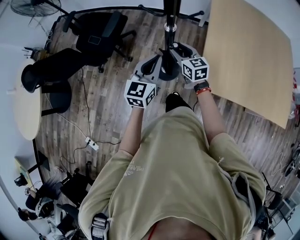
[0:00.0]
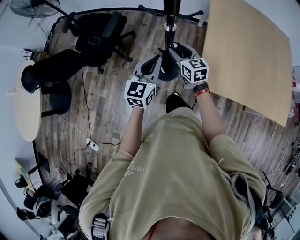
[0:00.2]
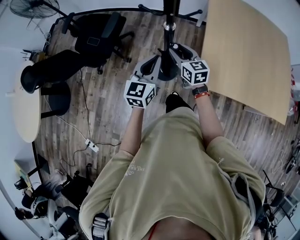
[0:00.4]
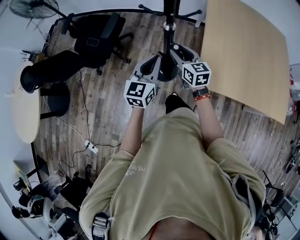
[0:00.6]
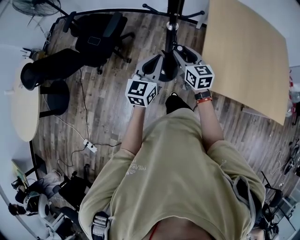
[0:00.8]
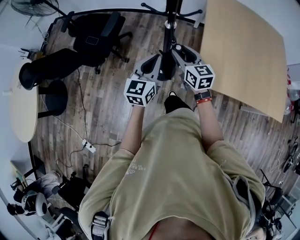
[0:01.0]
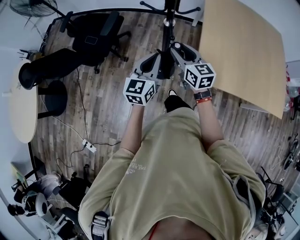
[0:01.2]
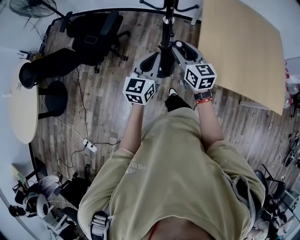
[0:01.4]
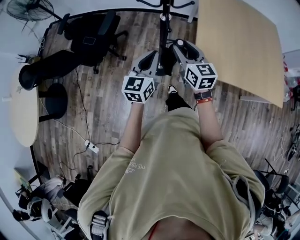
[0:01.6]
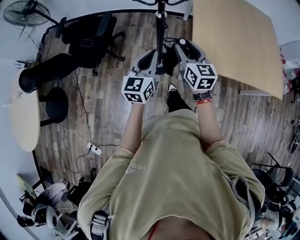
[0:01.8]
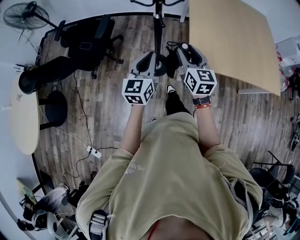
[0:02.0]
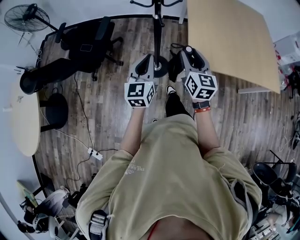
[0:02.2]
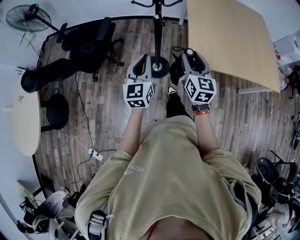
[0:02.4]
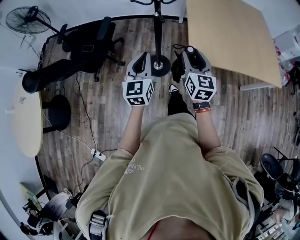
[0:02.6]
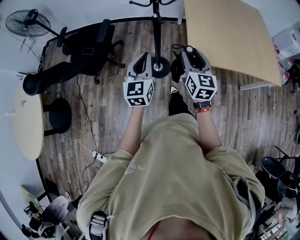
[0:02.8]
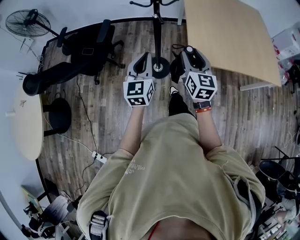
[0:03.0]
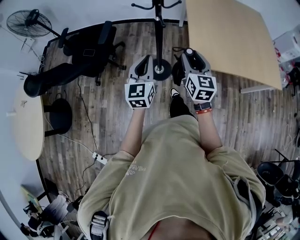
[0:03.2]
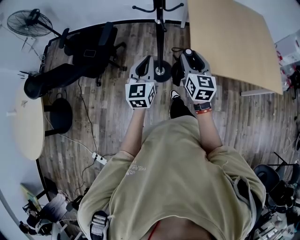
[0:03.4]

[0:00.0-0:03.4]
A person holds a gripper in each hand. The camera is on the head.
0:00.0 to 0:01.6: The right gripper travels backward and upward by about 20 cm. Meanwhile the left gripper is displaced backward by some 10 cm.
0:01.6 to 0:03.4: The right gripper moves backward and to the right, some 10 cm. The left gripper is displaced backward by roughly 5 cm.

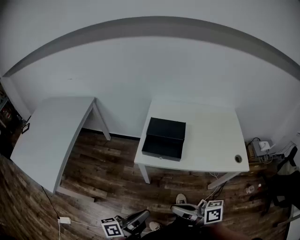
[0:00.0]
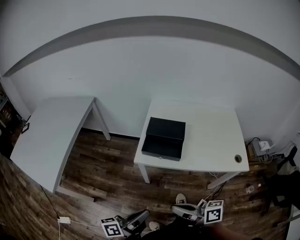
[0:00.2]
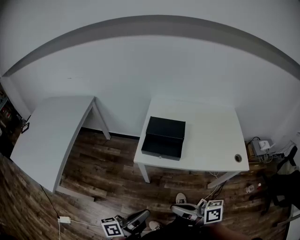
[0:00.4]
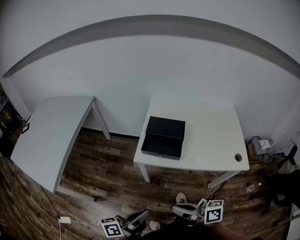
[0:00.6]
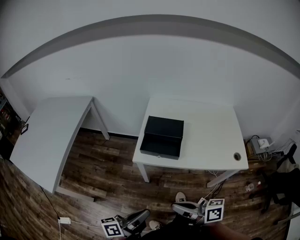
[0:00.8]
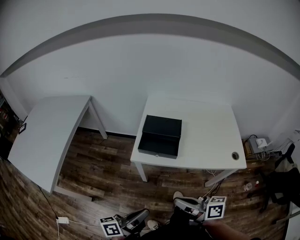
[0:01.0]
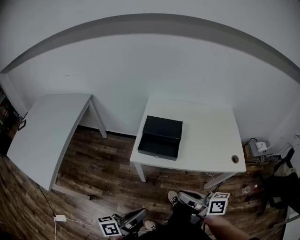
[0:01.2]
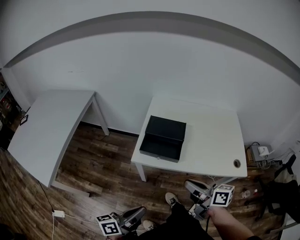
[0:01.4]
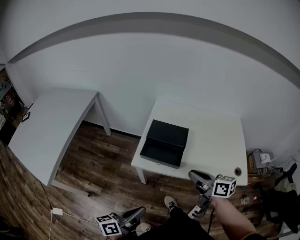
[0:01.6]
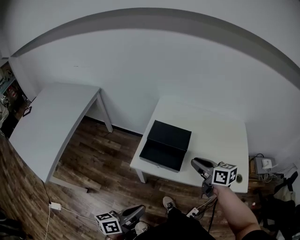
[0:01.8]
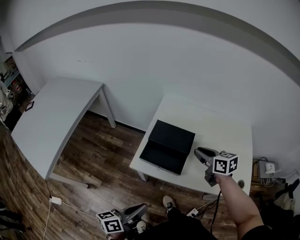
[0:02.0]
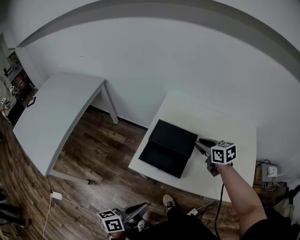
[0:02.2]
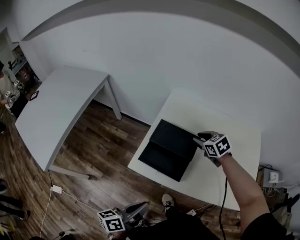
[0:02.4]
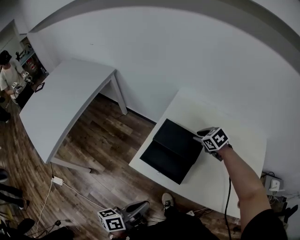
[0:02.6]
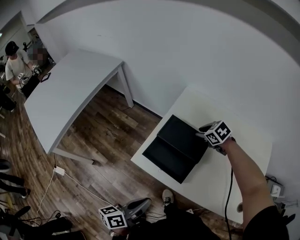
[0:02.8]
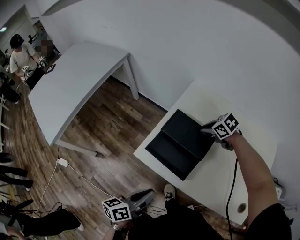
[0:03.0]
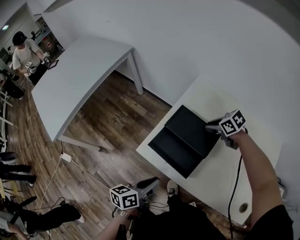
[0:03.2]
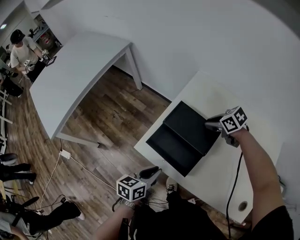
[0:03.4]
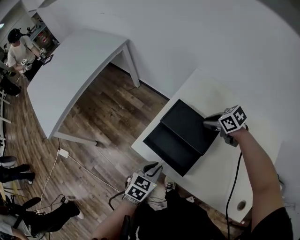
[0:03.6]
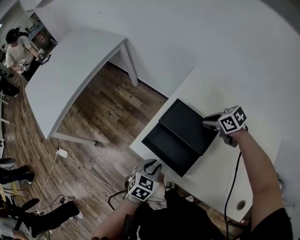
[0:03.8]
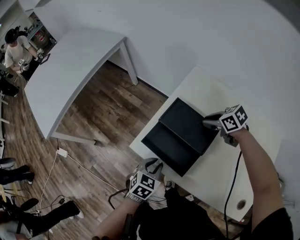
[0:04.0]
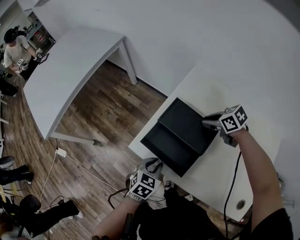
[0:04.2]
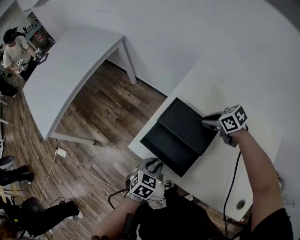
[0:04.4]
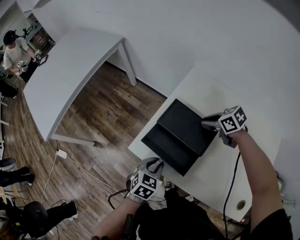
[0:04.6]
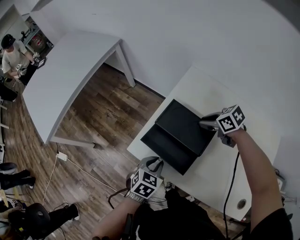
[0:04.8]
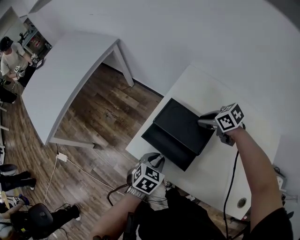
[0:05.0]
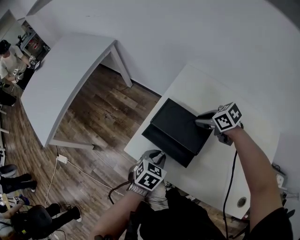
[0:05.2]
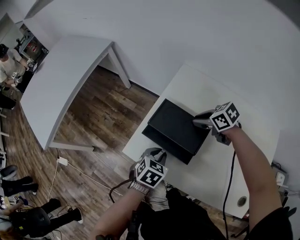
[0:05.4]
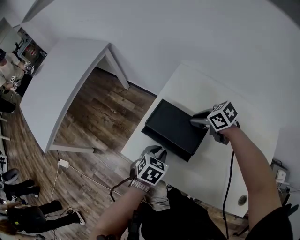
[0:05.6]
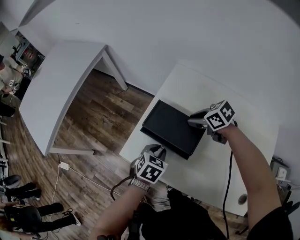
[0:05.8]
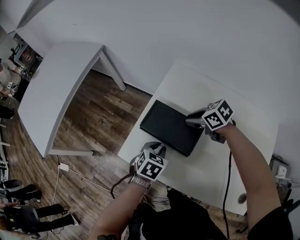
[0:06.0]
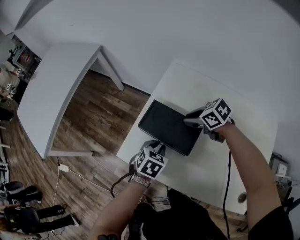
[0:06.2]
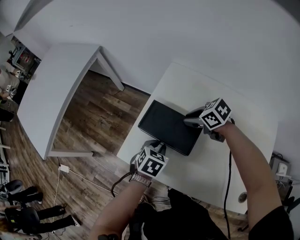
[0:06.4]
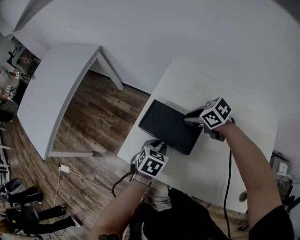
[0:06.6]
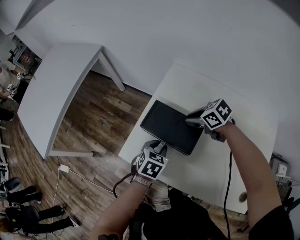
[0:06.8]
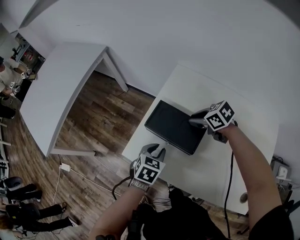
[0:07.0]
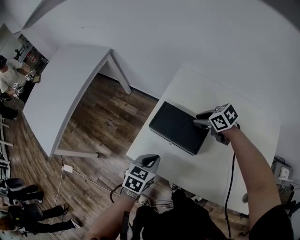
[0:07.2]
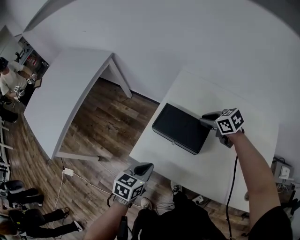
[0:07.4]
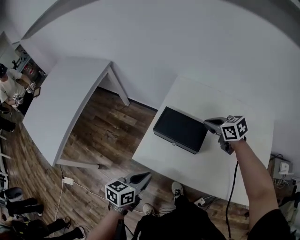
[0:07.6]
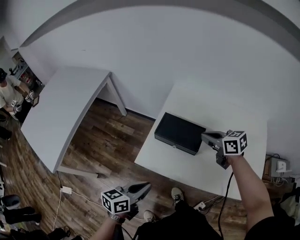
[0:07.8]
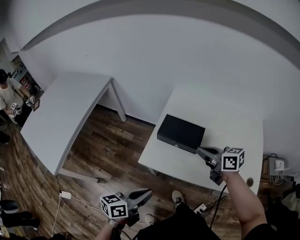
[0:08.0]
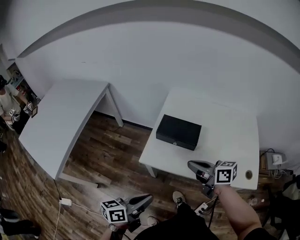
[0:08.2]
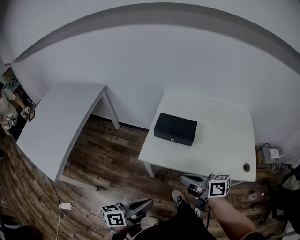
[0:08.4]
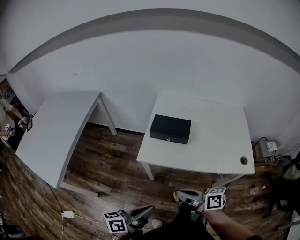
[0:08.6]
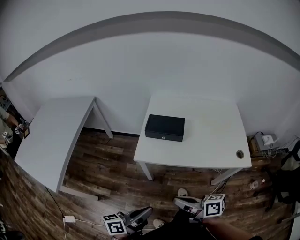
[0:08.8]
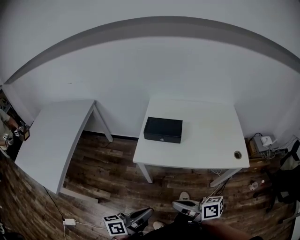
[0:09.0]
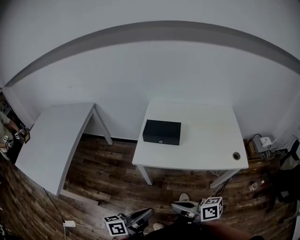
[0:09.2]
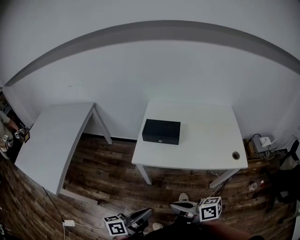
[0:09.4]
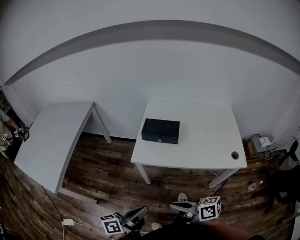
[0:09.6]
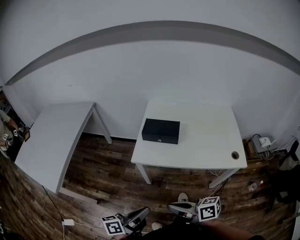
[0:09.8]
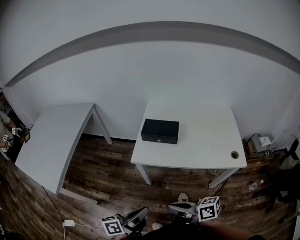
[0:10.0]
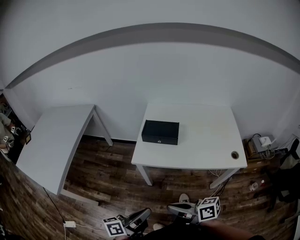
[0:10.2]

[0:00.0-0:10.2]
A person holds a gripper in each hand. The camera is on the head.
0:00.0 to 0:01.4: The right gripper moves forward and to the right, roughly 15 cm.
0:01.4 to 0:03.0: The left gripper moves about 20 cm, and turns by approximately 30 degrees. Meanwhile the right gripper moves roughly 40 cm, and tilts its fingers roughly 50 degrees downward.
0:03.0 to 0:04.4: The left gripper is displaced downward, forward and to the right by roughly 15 cm, and rotates around the line of its fingers by about 50 degrees, clockwise from behind.
0:04.4 to 0:05.8: The left gripper moves to the right and forward, some 10 cm.
0:05.8 to 0:07.2: The left gripper heads to the left, covering roughly 5 cm.
0:07.2 to 0:08.8: The right gripper shifts by approximately 50 cm, angles its fingers upward, by roughly 40 degrees, and closes its fingers; the left gripper changes place by approximately 35 cm, and points its fingers about 40 degrees further upward.
0:08.8 to 0:10.2: The grippers make only small movements.

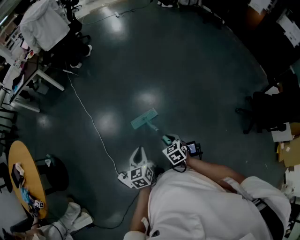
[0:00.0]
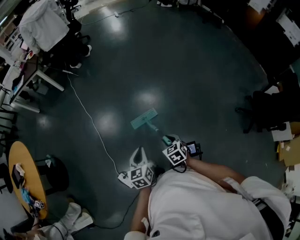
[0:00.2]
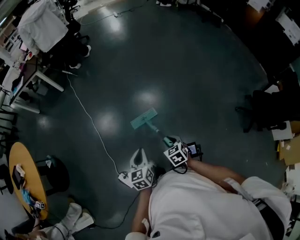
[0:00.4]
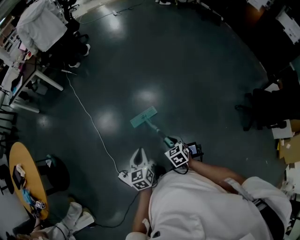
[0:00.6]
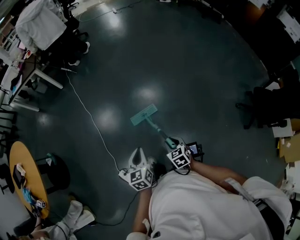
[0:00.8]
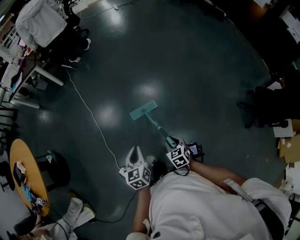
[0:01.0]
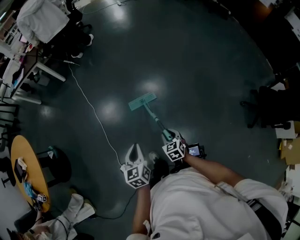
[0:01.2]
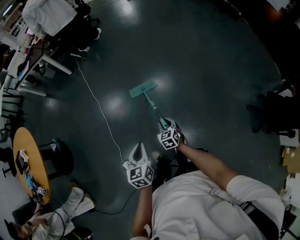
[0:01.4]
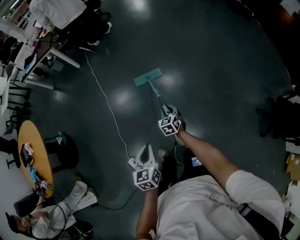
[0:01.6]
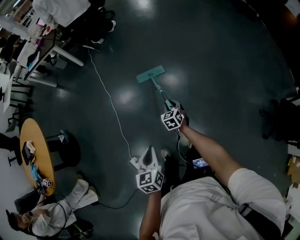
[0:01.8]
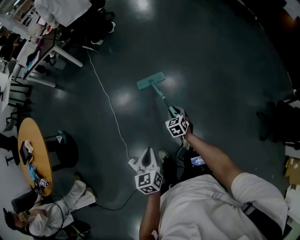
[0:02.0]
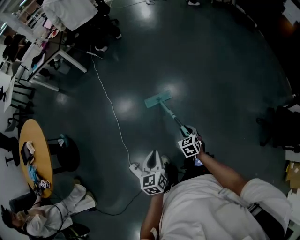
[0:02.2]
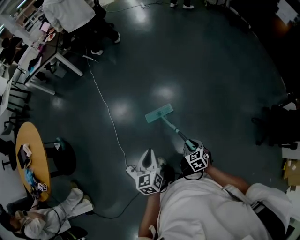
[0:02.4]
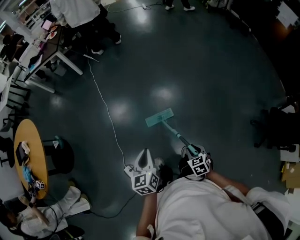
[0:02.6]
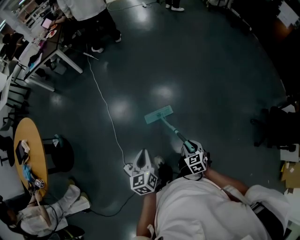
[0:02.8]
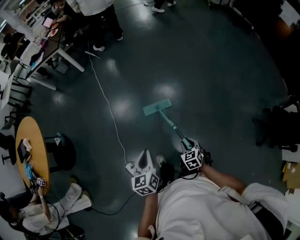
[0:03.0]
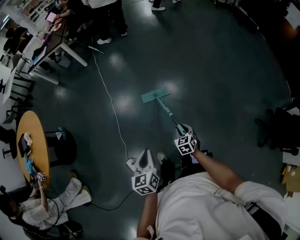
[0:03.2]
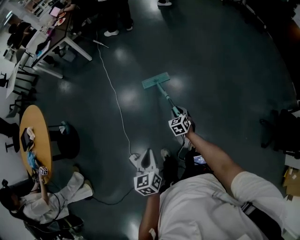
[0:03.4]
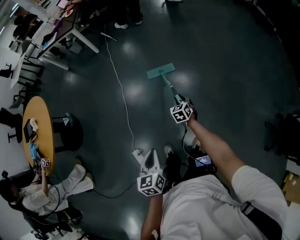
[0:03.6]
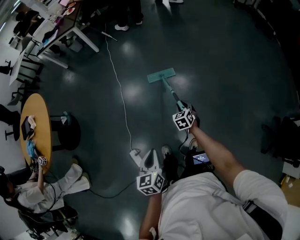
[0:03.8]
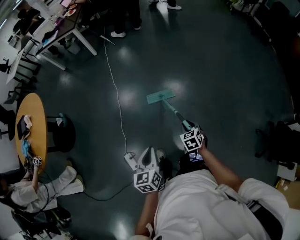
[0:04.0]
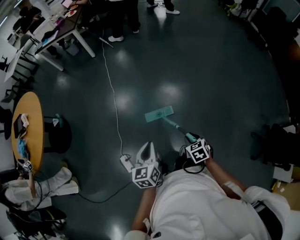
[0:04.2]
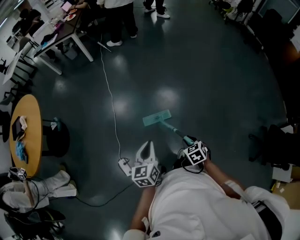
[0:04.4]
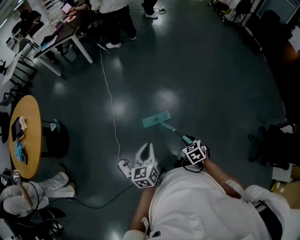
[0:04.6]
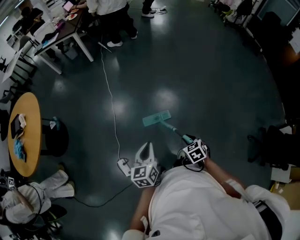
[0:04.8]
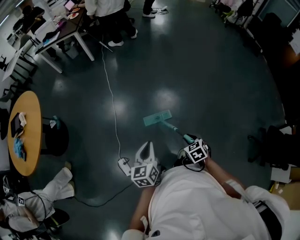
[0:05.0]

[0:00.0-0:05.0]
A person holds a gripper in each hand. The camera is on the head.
0:00.0 to 0:01.6: The right gripper shifts some 20 cm forward and downward.
0:01.6 to 0:03.4: The left gripper moves roughly 5 cm. The right gripper reaches roughly 25 cm backward, then returns.
0:03.4 to 0:05.0: The right gripper travels backward and upward by some 20 cm.

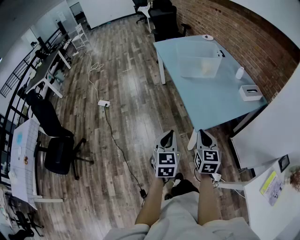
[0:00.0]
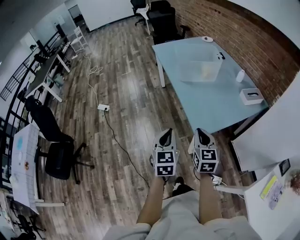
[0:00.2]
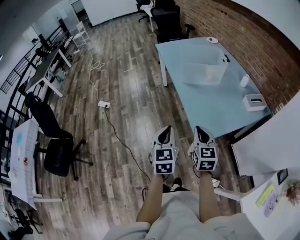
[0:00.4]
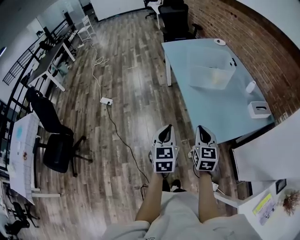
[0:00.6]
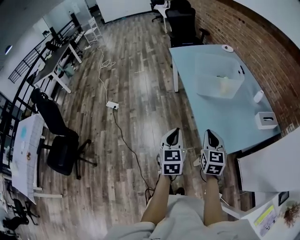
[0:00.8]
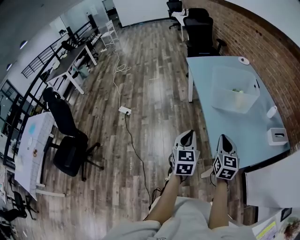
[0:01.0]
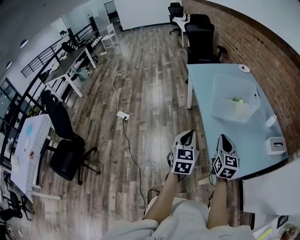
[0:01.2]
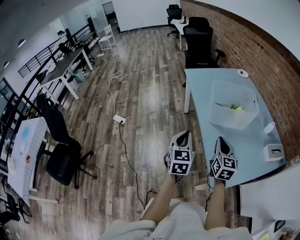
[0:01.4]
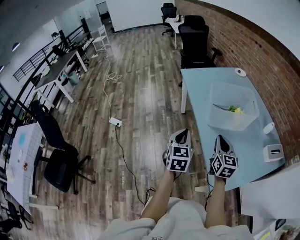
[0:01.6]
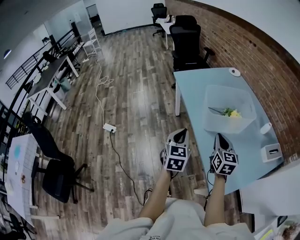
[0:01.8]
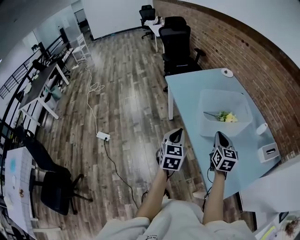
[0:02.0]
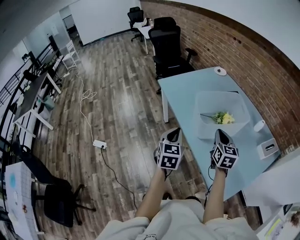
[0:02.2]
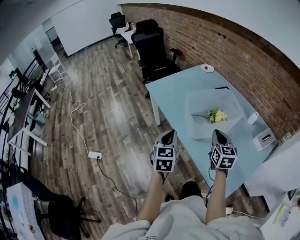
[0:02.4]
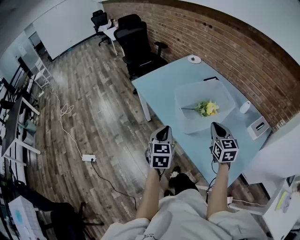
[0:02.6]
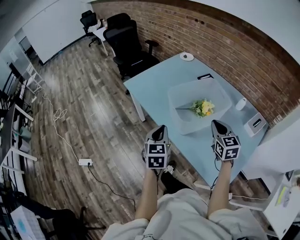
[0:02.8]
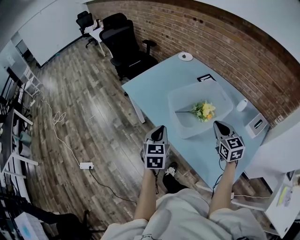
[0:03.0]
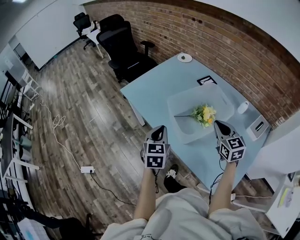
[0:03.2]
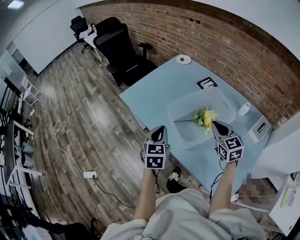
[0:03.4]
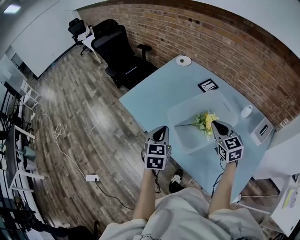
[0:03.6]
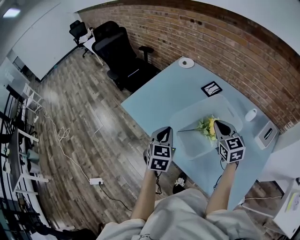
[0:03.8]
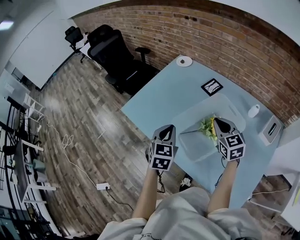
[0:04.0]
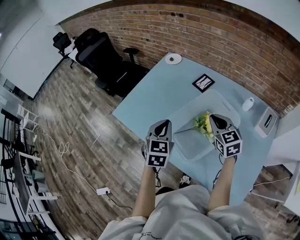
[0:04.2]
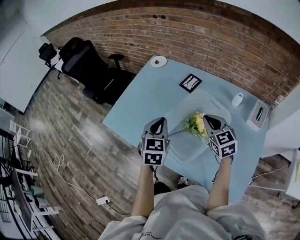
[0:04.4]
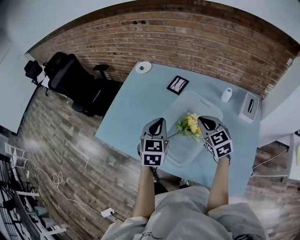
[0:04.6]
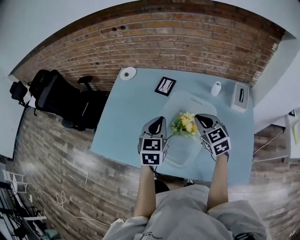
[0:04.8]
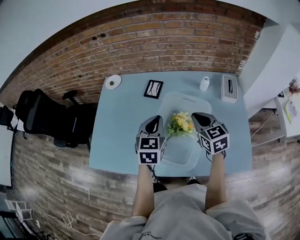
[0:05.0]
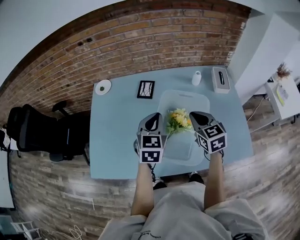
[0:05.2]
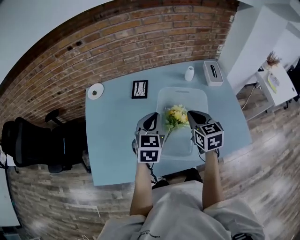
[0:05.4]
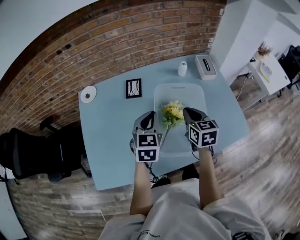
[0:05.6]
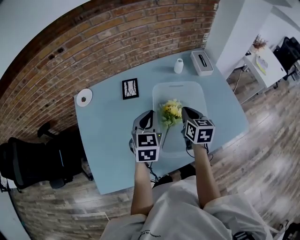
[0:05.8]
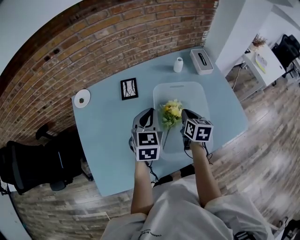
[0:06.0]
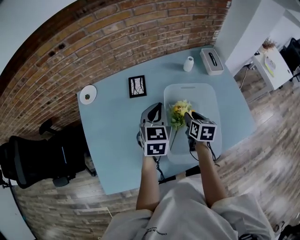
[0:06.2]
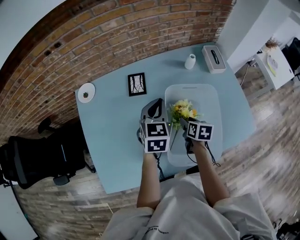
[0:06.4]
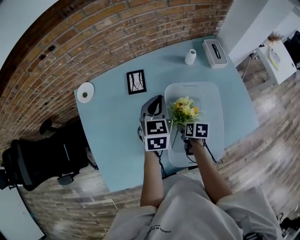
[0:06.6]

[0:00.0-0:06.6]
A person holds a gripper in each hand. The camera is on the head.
0:00.0 to 0:01.6: The grippers both shift forward by approximately 35 cm.
0:01.6 to 0:03.2: Both grippers travel together forward, approximately 25 cm. The left gripper rotates approximately 30 degrees.
0:03.2 to 0:05.0: The left gripper ends up some 30 cm from where it was, and rotates about 50 degrees; the right gripper shifts by about 15 cm, and turns by about 40 degrees.
0:05.0 to 0:06.6: The right gripper is displaced downward by some 25 cm, rolls clockwise, seen from behind, by approximately 60 degrees, and opens its fingers. Meanwhile the left gripper moves about 15 cm, and changes its angle by roughly 20 degrees.
